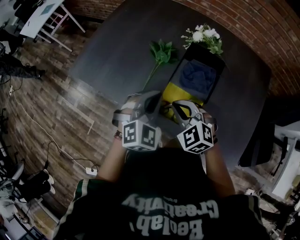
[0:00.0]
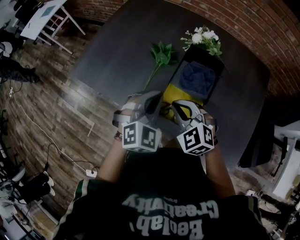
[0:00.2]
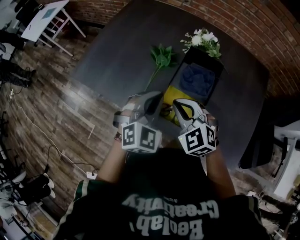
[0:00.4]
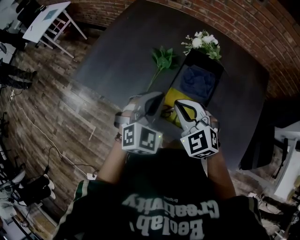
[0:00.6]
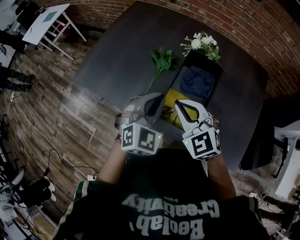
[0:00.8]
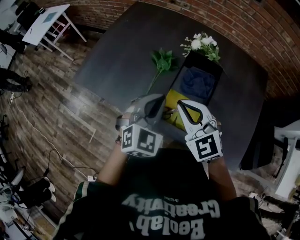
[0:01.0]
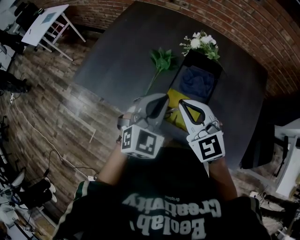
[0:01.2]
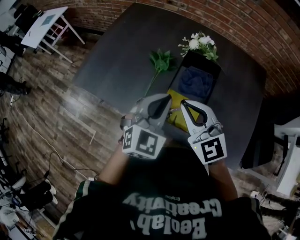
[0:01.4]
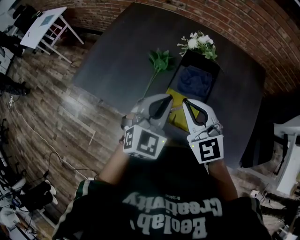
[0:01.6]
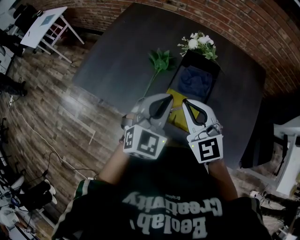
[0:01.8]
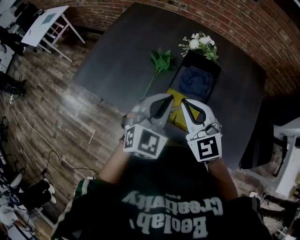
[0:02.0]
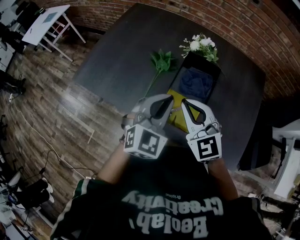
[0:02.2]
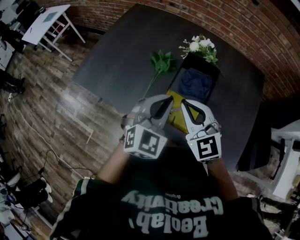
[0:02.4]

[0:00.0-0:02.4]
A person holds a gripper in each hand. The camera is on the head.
0.0 to 1.2 s: The left gripper is displaced upward by some 5 cm. The right gripper is displaced upward by about 10 cm, and rotates approximately 30 degrees.
1.2 to 2.4 s: There are only small adjustments of the grippers.

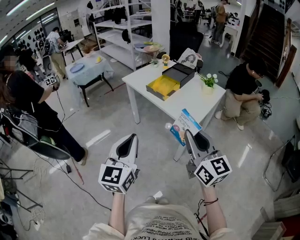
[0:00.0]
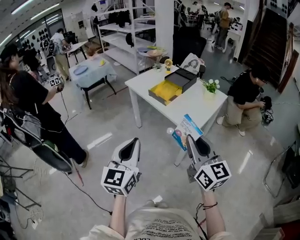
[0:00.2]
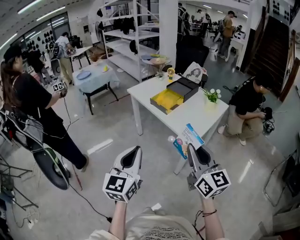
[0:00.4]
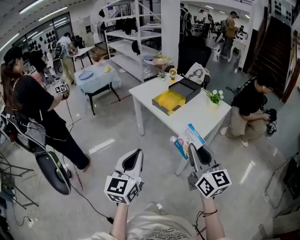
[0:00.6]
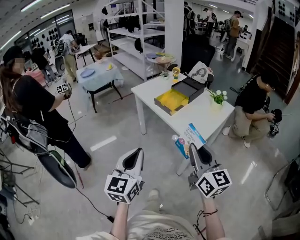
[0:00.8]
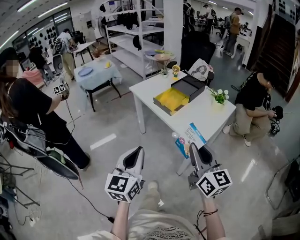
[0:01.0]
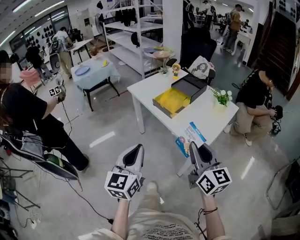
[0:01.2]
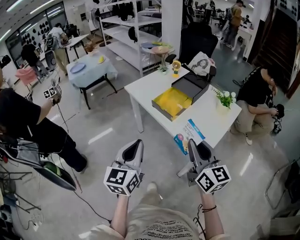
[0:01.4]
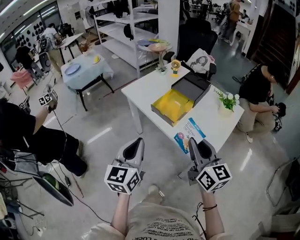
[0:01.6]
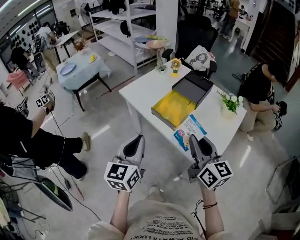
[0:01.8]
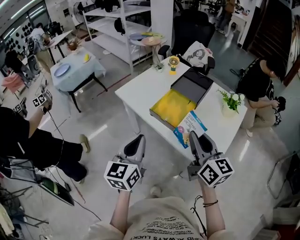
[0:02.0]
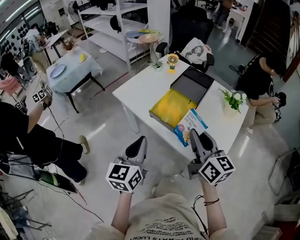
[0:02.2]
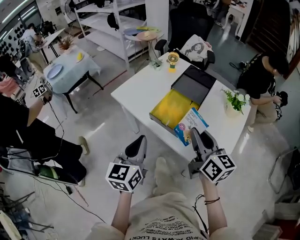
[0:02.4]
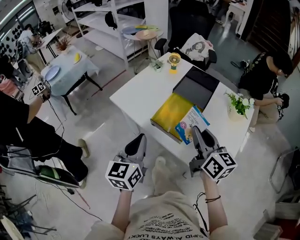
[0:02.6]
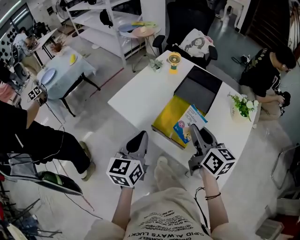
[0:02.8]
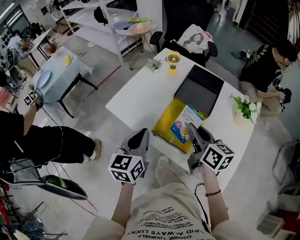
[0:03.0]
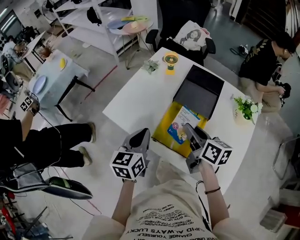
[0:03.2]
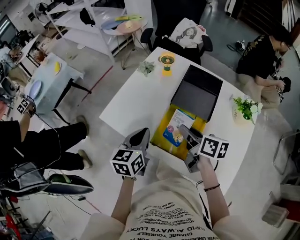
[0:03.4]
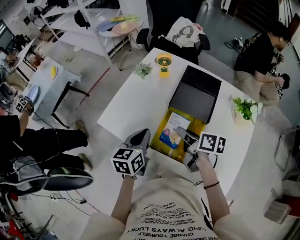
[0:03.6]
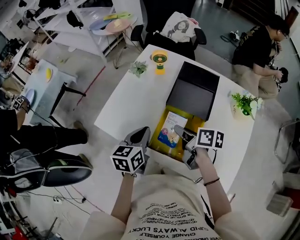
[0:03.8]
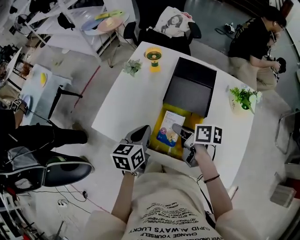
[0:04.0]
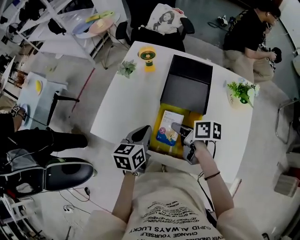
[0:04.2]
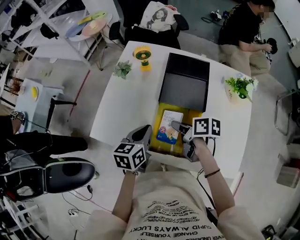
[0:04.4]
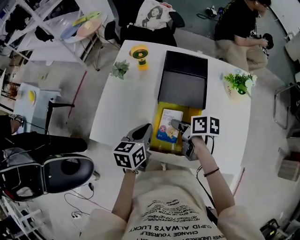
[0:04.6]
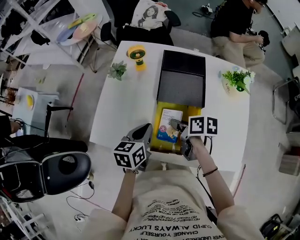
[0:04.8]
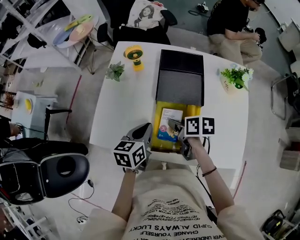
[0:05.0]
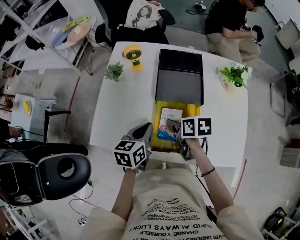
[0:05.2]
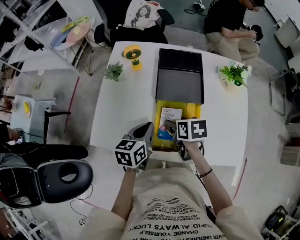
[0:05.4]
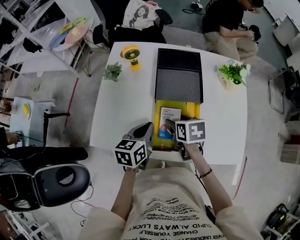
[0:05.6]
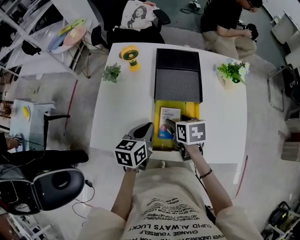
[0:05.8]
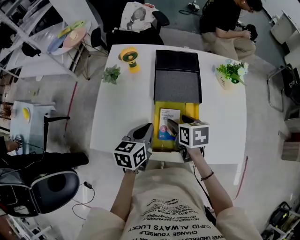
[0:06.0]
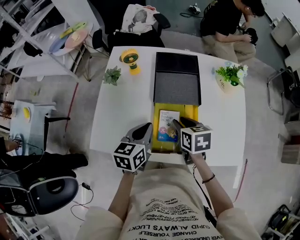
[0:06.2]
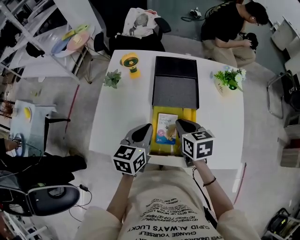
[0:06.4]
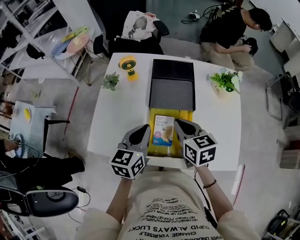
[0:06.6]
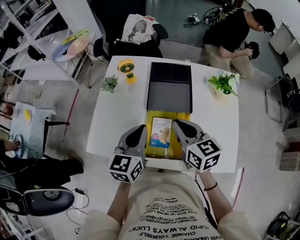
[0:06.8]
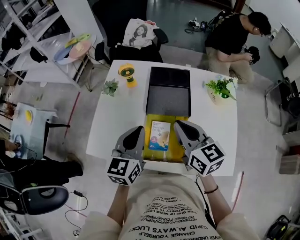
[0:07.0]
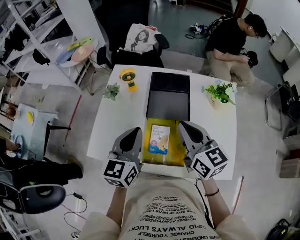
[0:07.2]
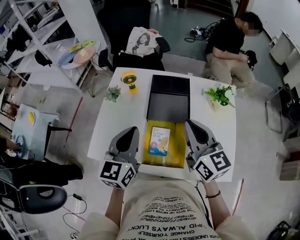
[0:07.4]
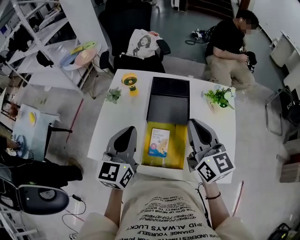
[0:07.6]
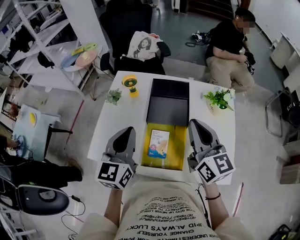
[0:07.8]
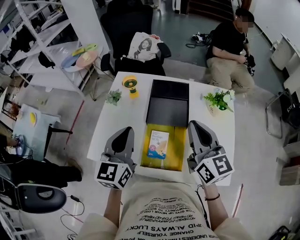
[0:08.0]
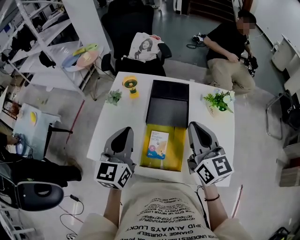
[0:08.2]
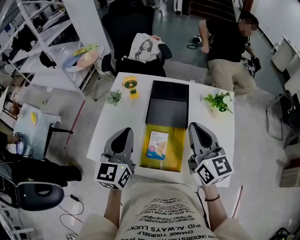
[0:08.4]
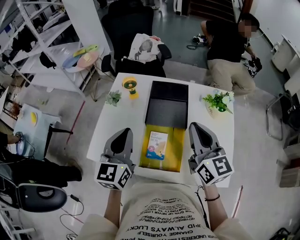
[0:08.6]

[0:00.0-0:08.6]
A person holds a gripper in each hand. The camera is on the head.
0.0 to 1.4 s: Both grippers move forward, approximately 20 cm.
1.4 to 2.8 s: Both grippers move forward, about 30 cm. The right gripper rotates about 20 degrees.
2.8 to 4.4 s: The right gripper goes roughly 20 cm downward and forward, and changes its angle by about 50 degrees; the left gripper shifts roughly 20 cm forward and downward, and rotates some 30 degrees.
4.4 to 5.8 s: The right gripper rotates approximately 30 degrees, and opens its fingers.
5.8 to 7.2 s: The grippers both shift upward by approximately 15 cm. The right gripper points its fingers roughly 40 degrees further upward, and closes. The left gripper swivels roughly 30 degrees.
7.2 to 8.6 s: The right gripper ends up about 5 cm from where it was.

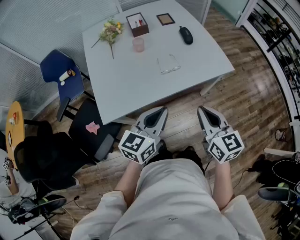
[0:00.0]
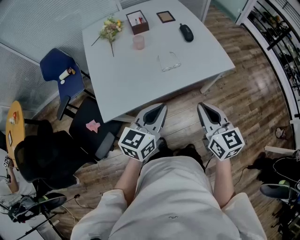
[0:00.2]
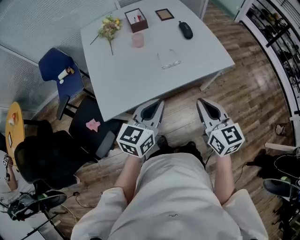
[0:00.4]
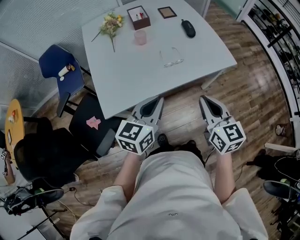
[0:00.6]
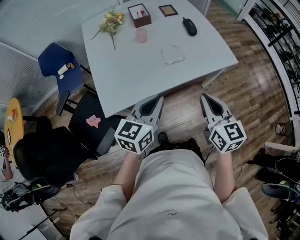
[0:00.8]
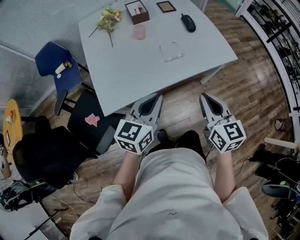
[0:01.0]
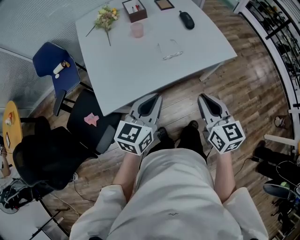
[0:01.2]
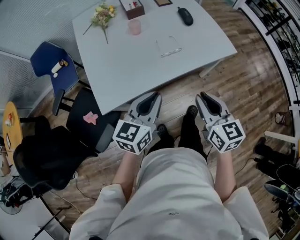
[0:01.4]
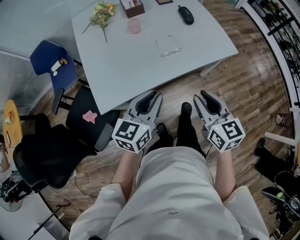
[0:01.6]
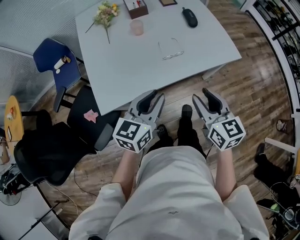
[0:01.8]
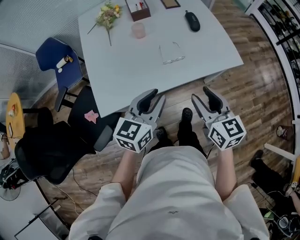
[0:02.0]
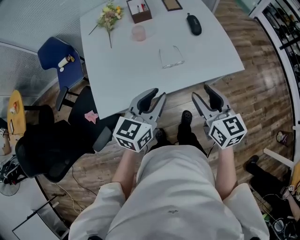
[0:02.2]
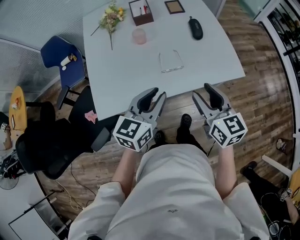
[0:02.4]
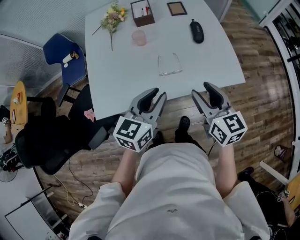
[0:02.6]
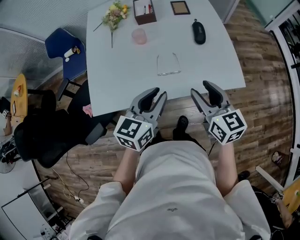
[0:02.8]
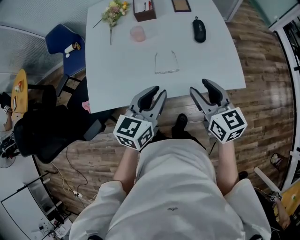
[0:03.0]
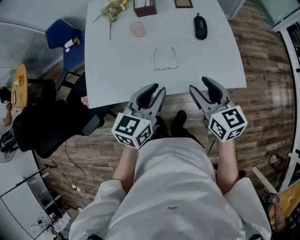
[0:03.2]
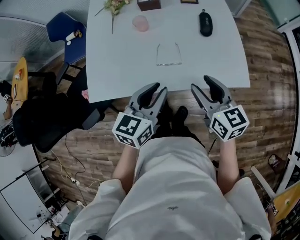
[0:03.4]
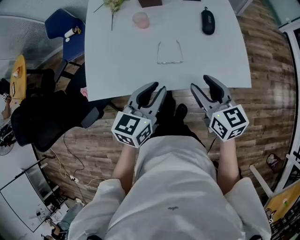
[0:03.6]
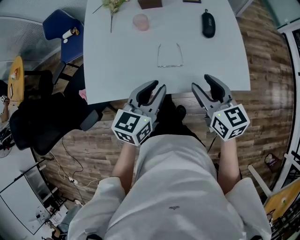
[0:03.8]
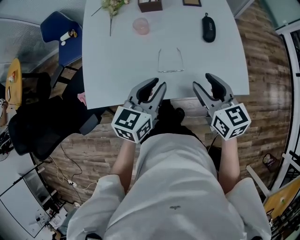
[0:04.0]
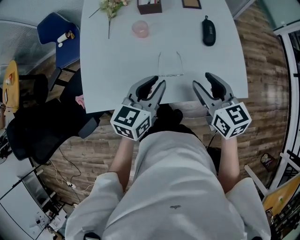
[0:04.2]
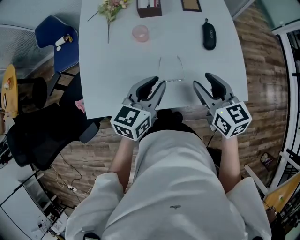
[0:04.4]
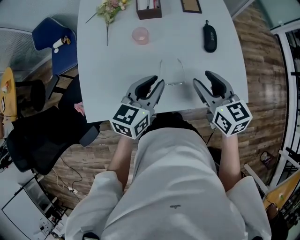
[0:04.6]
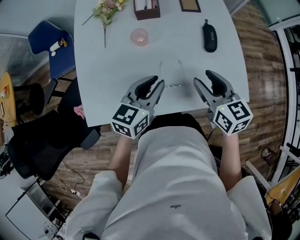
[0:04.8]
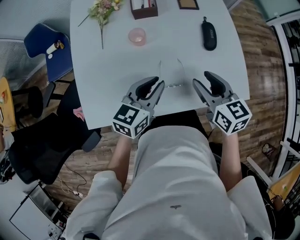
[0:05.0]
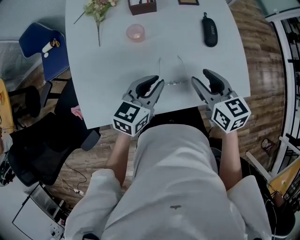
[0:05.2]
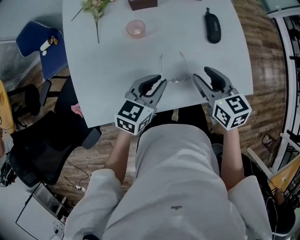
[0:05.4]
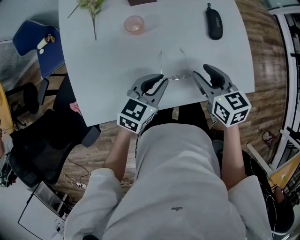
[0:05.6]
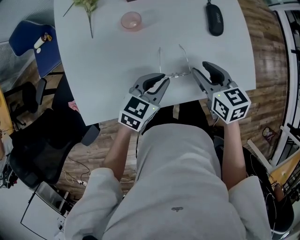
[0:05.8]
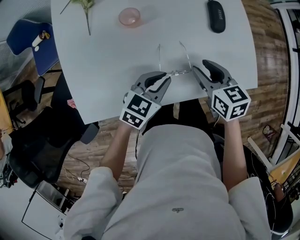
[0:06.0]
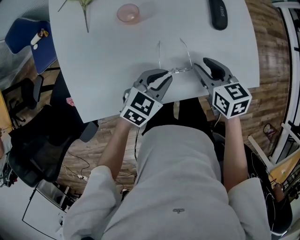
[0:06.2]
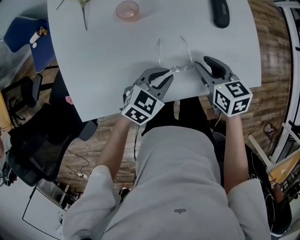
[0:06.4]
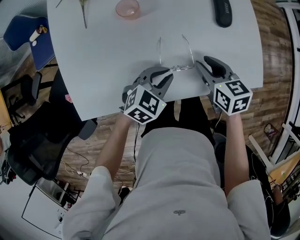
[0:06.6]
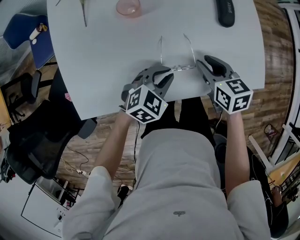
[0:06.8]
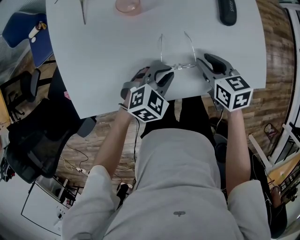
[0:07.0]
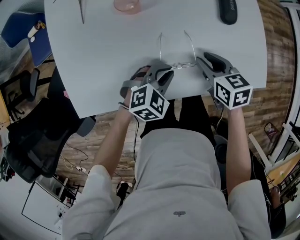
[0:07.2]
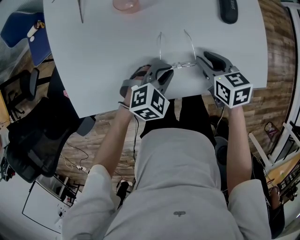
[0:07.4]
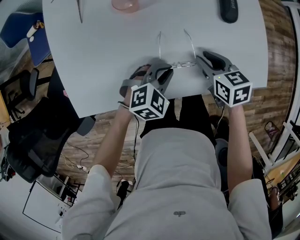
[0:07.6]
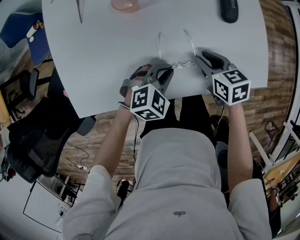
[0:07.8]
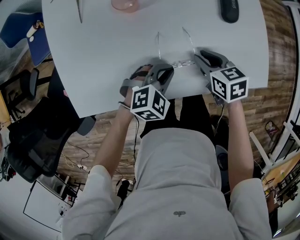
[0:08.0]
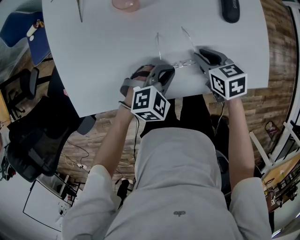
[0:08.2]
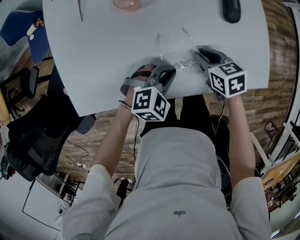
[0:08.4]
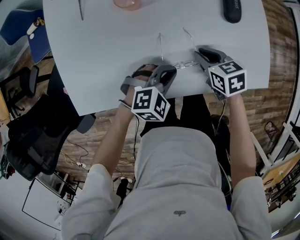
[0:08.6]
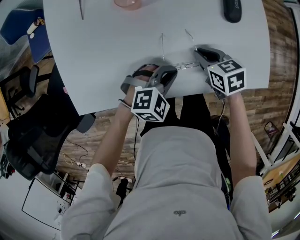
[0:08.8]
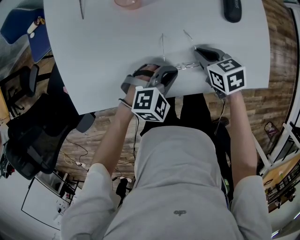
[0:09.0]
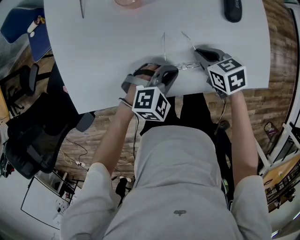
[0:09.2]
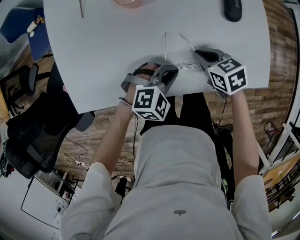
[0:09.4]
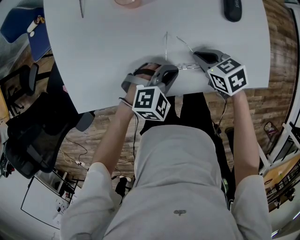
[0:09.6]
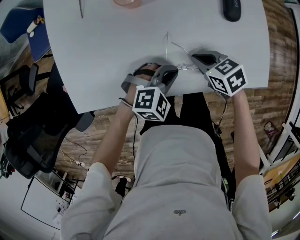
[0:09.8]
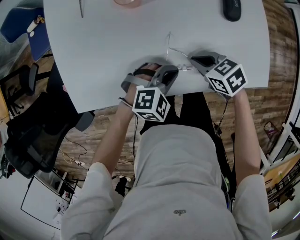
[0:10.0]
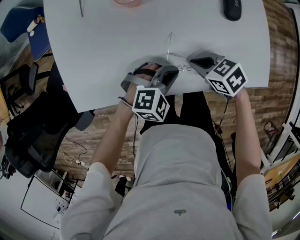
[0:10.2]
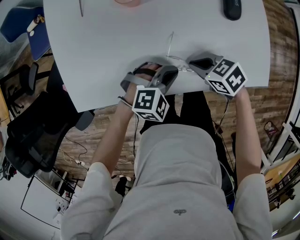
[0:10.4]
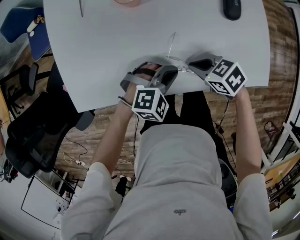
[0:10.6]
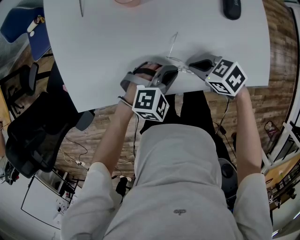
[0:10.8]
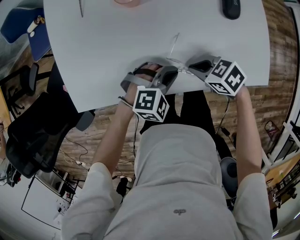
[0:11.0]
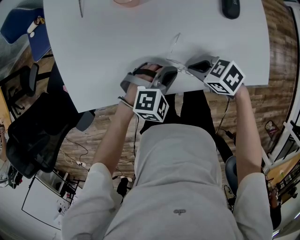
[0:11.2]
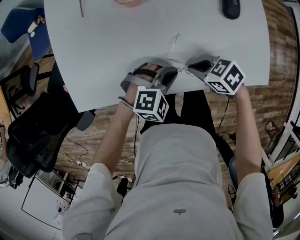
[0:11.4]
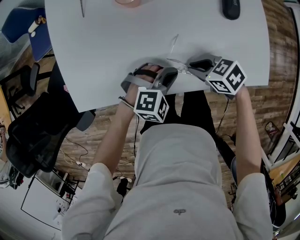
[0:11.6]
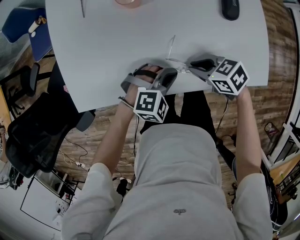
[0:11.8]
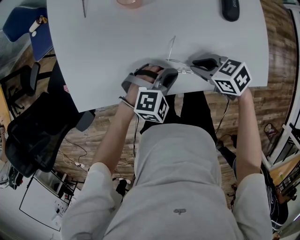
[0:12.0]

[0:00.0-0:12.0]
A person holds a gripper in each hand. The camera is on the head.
0.0 to 1.6 s: The right gripper opens its fingers, while the left gripper moves some 5 cm.
1.6 to 3.0 s: The grippers both shift forward and to the right by approximately 20 cm. The right gripper opens.
3.0 to 4.4 s: The two grippers go approximately 10 cm forward.
4.4 to 6.0 s: Both grippers travel together downward, some 10 cm. The left gripper turns by some 30 degrees.
6.0 to 7.6 s: The grippers both shift downward by about 10 cm. The left gripper changes its angle by roughly 30 degrees.
7.6 to 9.0 s: The right gripper closes.
9.0 to 10.4 s: The right gripper moves about 5 cm, and changes its angle by approximately 30 degrees.
10.4 to 12.0 s: The grippers move only a little.

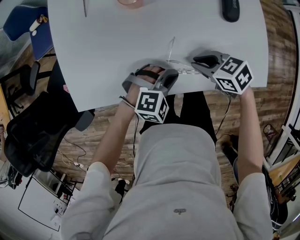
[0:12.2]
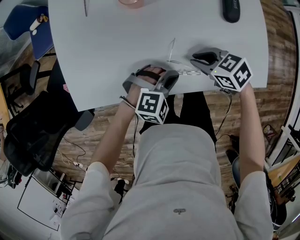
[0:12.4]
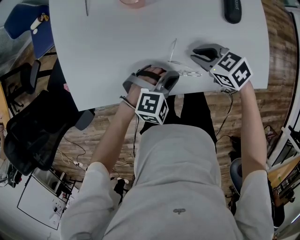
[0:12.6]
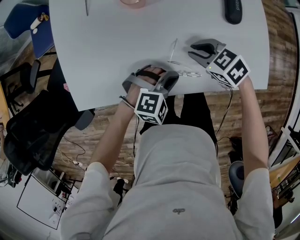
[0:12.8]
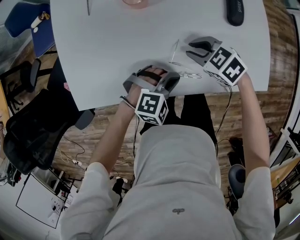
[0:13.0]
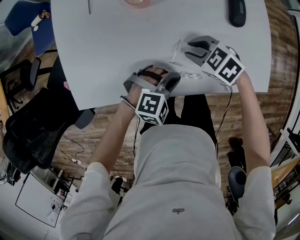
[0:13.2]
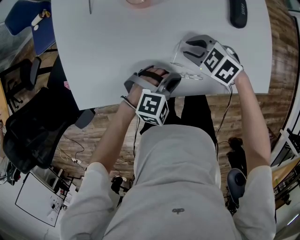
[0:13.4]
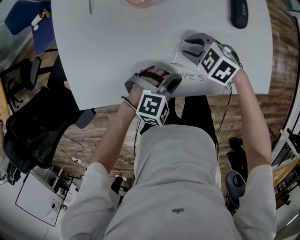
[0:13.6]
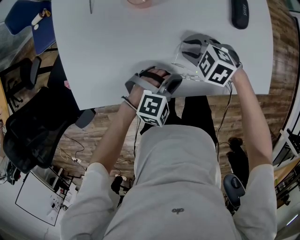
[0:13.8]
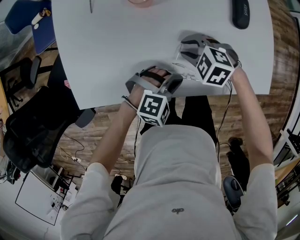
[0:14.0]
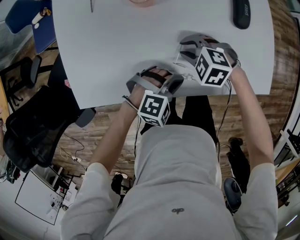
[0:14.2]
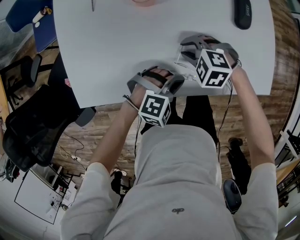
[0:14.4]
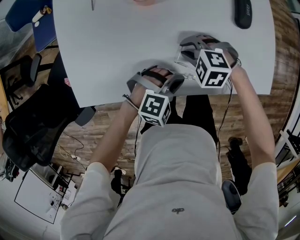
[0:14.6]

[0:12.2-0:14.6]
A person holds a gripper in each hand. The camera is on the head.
12.2 to 13.4 s: The right gripper ends up about 5 cm from where it was, and turns by approximately 30 degrees.
13.4 to 14.6 s: The right gripper swivels some 30 degrees.
